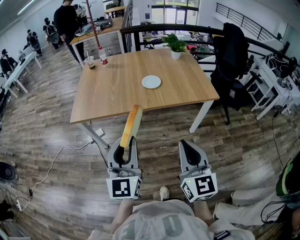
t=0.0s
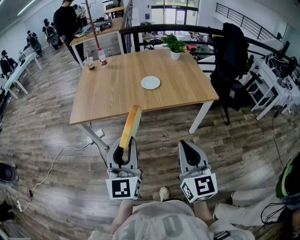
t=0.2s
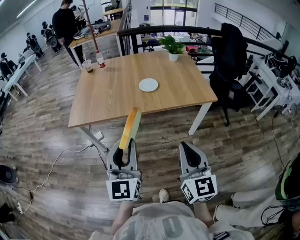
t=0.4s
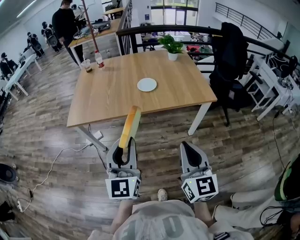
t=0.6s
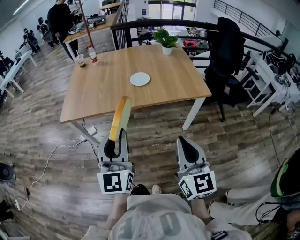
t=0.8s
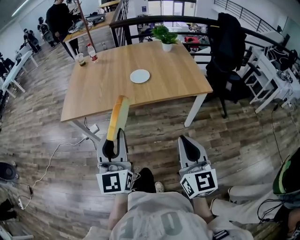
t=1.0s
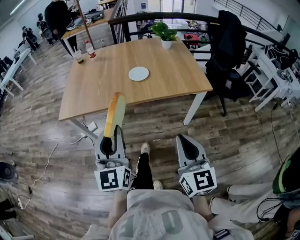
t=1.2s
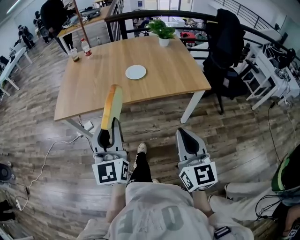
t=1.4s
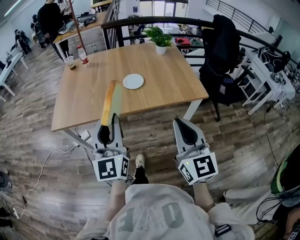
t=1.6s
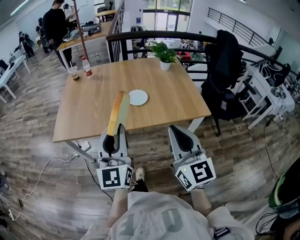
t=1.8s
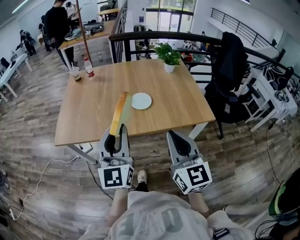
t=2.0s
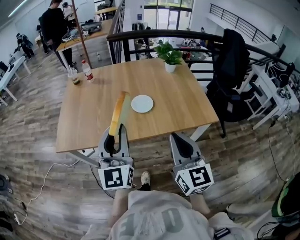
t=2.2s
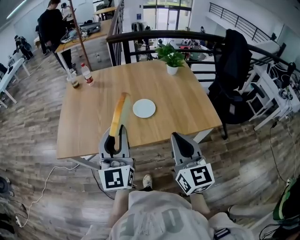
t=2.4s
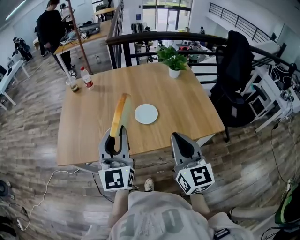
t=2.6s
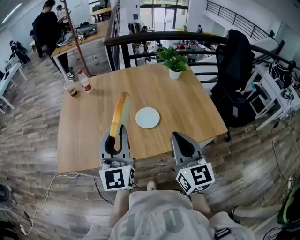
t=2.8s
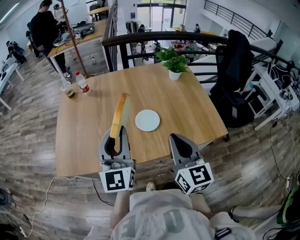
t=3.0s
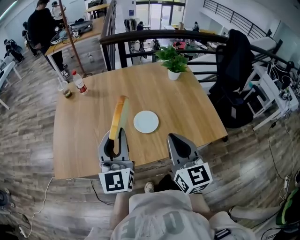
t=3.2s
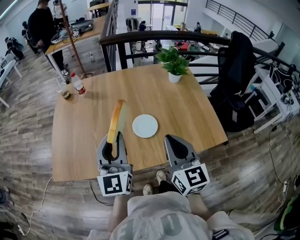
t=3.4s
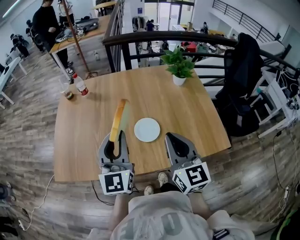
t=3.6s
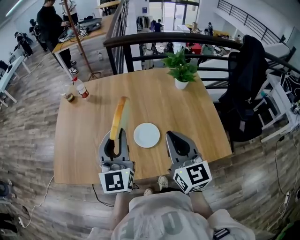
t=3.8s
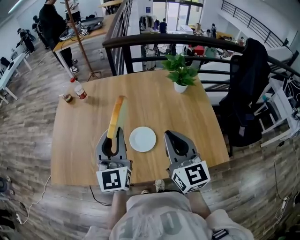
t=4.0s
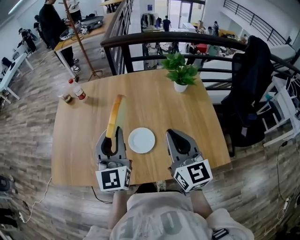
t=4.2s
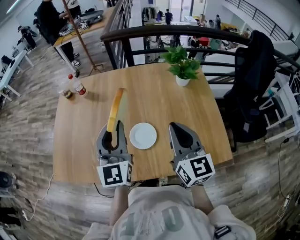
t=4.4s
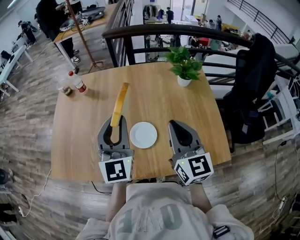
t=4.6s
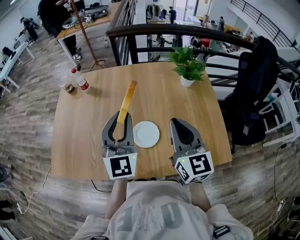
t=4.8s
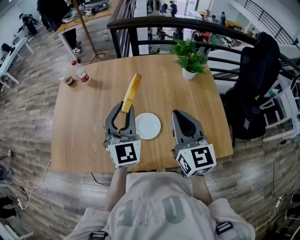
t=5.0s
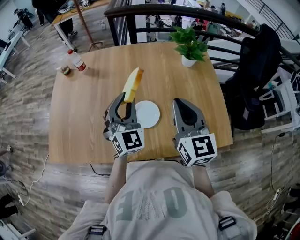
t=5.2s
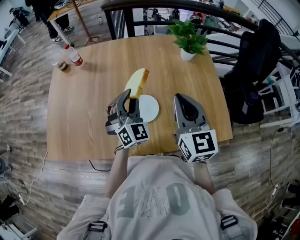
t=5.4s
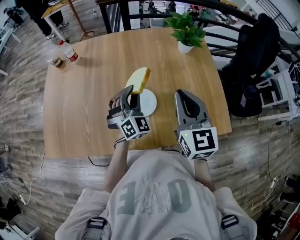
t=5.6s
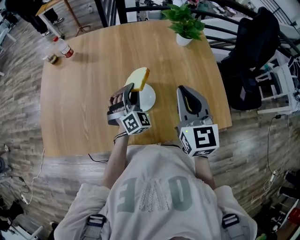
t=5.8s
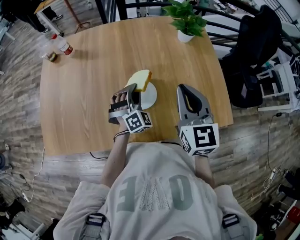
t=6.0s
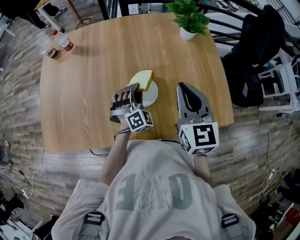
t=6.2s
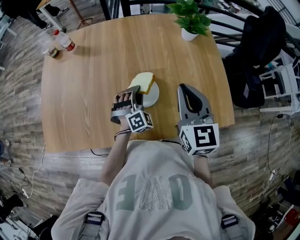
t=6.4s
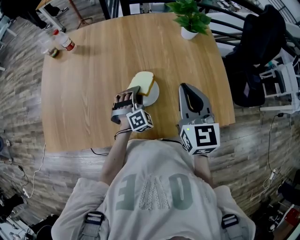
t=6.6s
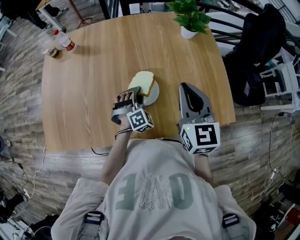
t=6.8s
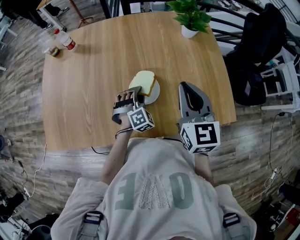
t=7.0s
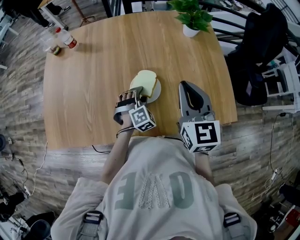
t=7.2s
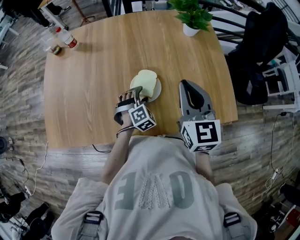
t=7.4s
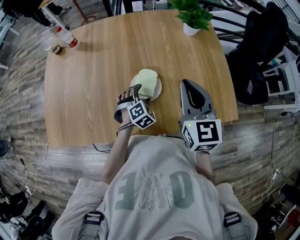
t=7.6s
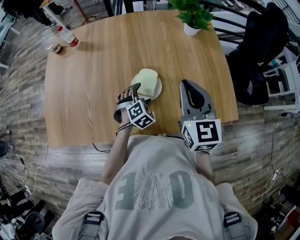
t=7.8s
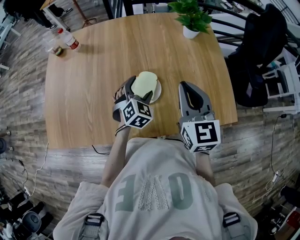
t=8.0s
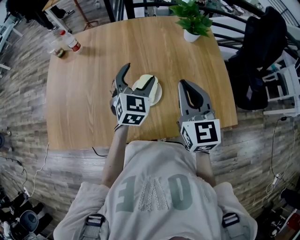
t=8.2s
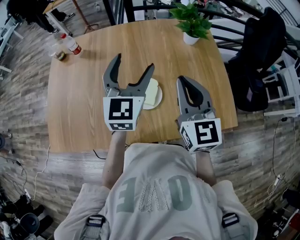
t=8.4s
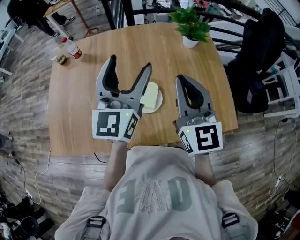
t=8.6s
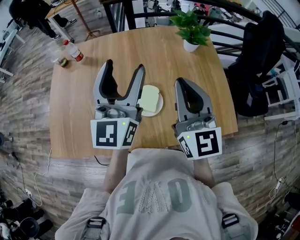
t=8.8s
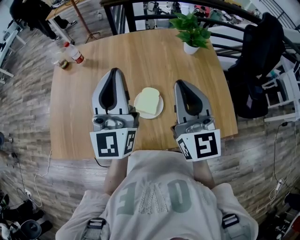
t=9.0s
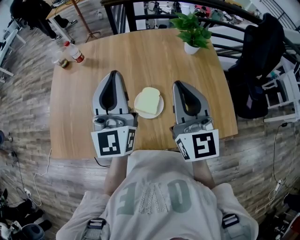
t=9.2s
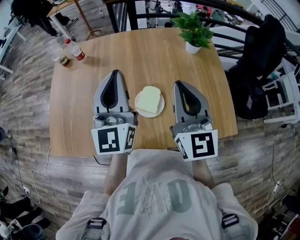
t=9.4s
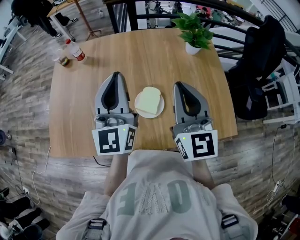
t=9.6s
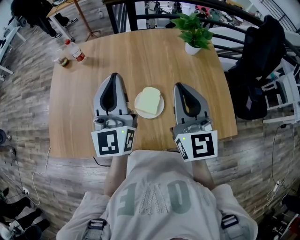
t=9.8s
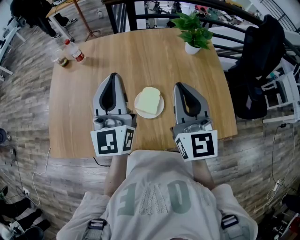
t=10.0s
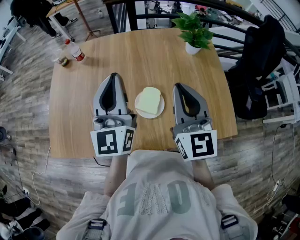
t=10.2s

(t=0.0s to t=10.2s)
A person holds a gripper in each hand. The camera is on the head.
t=0.0s - t=1.4s: The right gripper moves to the right, roughly 10 cm, while the left gripper heads forward, covering about 5 cm.
t=1.4s - t=3.0s: The two grippers go approximately 30 cm forward.
t=3.0s - t=4.4s: Both grippers move forward and to the right, some 20 cm.
t=4.4s - t=5.8s: The left gripper is displaced downward by approximately 20 cm, and twists approximately 50 degrees clockwise, seen from behind.
t=5.8s - t=7.2s: The left gripper goes roughly 10 cm downward, and changes its angle by approximately 30 degrees.
t=7.2s - t=8.8s: The left gripper moves upward, roughly 40 cm, angles its fingers upward, by about 60 degrees, and opens its fingers. Meanwhile the right gripper travels upward by roughly 10 cm.
t=8.8s - t=10.2s: The left gripper closes up.

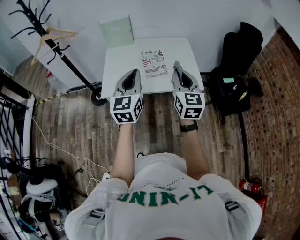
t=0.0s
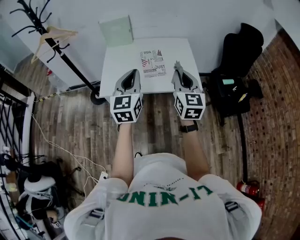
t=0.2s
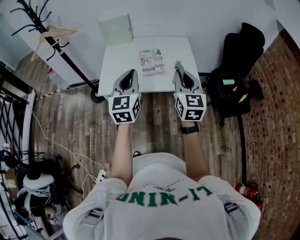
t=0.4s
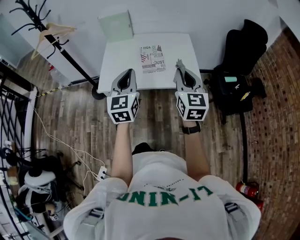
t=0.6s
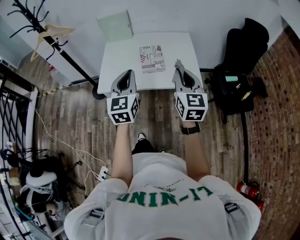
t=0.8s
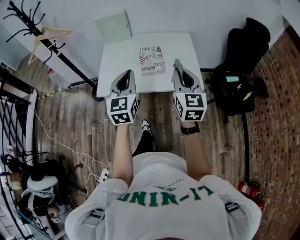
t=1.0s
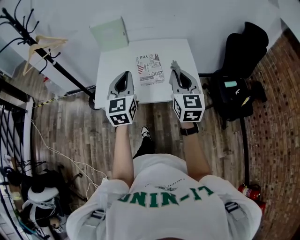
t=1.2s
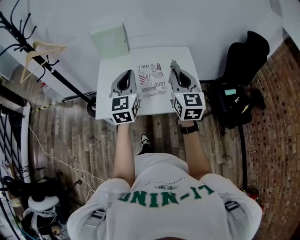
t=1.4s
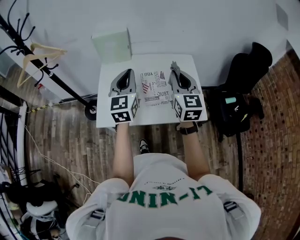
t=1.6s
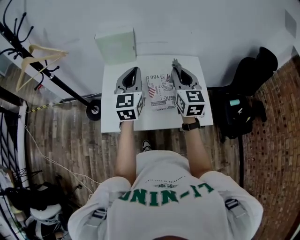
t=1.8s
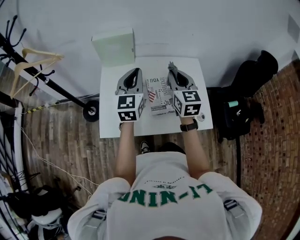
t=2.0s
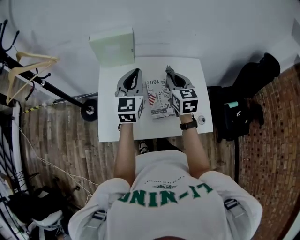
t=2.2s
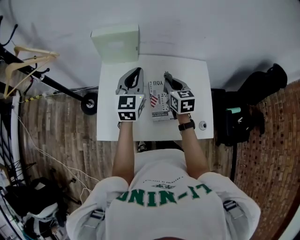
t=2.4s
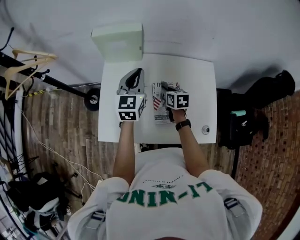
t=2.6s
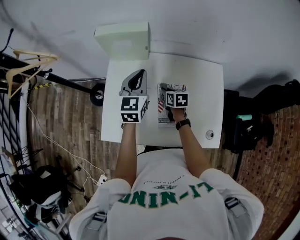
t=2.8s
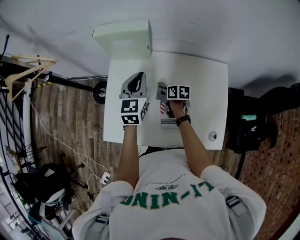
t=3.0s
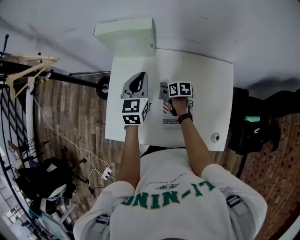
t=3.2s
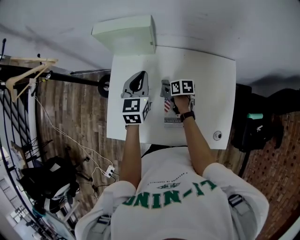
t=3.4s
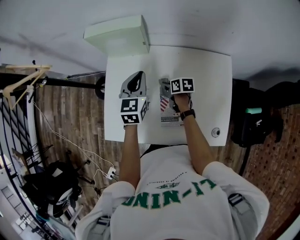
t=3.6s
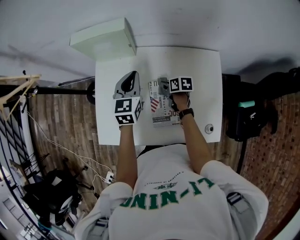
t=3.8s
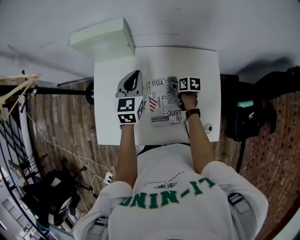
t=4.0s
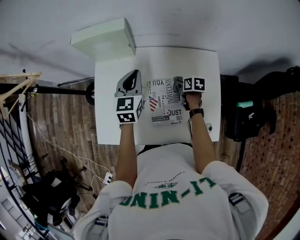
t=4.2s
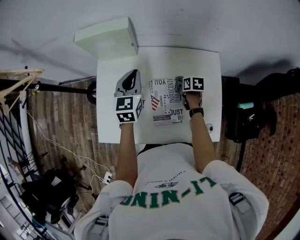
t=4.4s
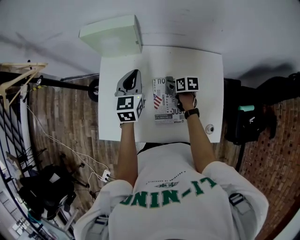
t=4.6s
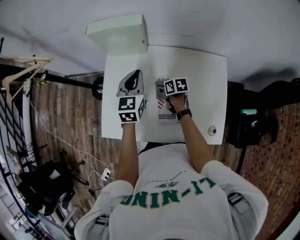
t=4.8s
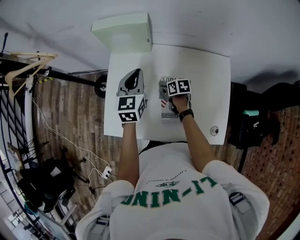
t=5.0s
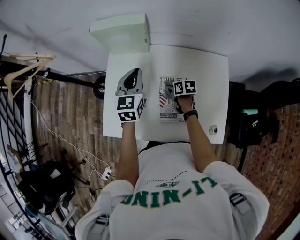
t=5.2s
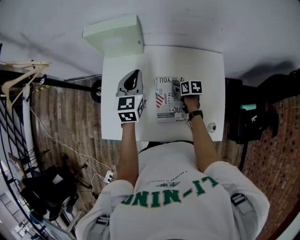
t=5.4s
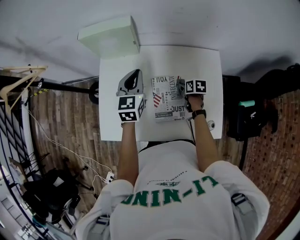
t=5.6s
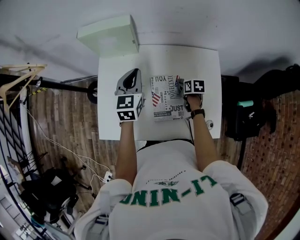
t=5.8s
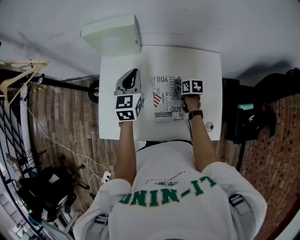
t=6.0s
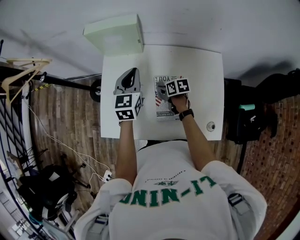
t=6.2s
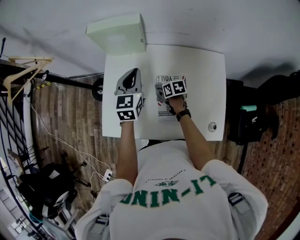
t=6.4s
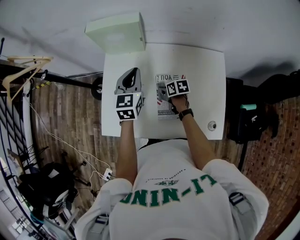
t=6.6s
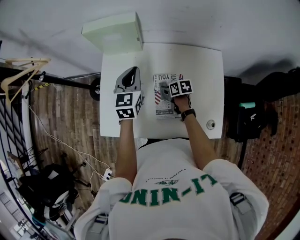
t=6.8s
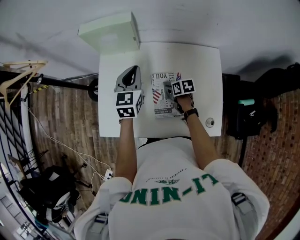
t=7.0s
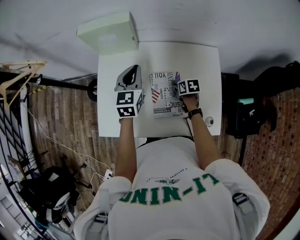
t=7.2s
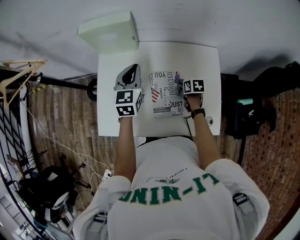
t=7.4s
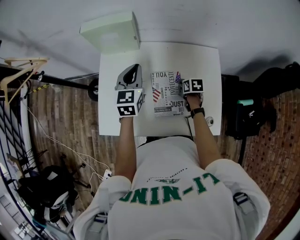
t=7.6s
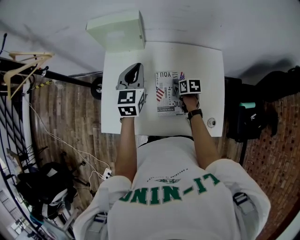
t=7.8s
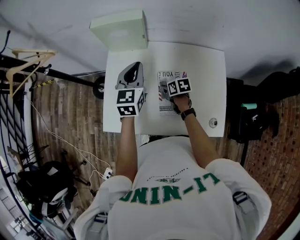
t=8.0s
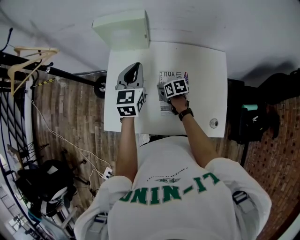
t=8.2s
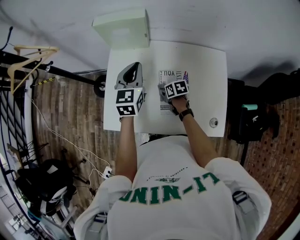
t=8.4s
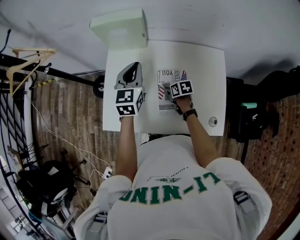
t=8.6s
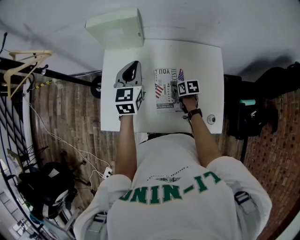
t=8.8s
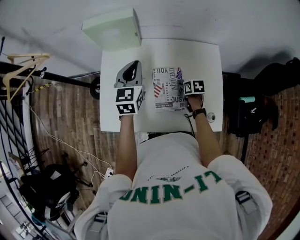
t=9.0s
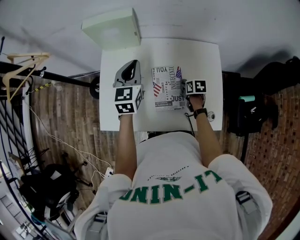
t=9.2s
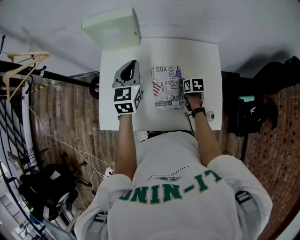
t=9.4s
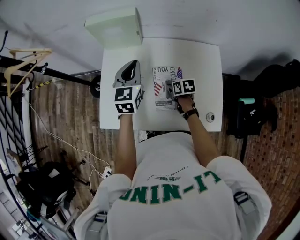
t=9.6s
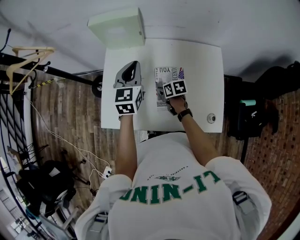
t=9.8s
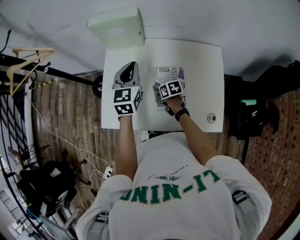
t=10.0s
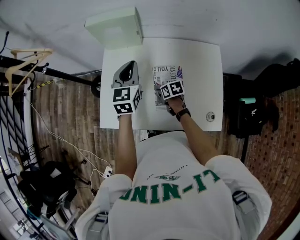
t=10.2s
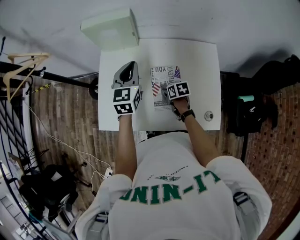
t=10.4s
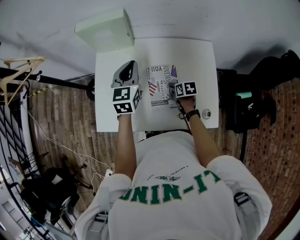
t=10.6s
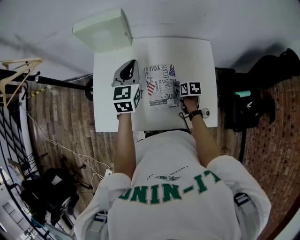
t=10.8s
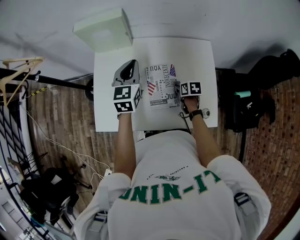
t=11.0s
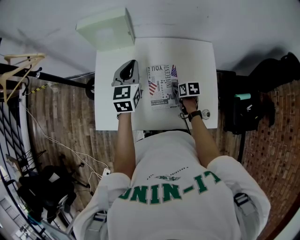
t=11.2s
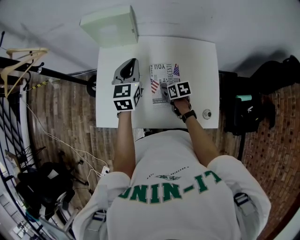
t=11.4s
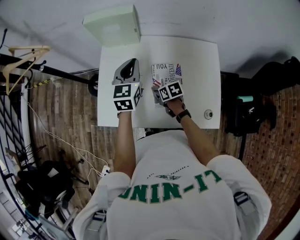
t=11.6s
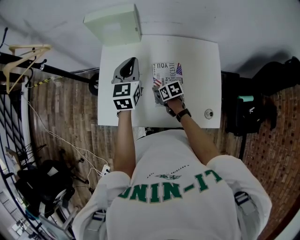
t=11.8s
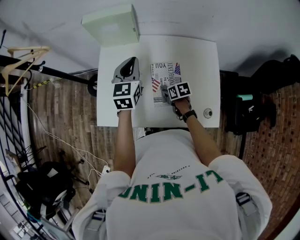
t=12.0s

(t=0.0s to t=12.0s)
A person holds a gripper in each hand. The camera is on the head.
t=0.0s - t=1.6s: Both grippers travel together forward, about 25 cm.
t=1.6s - t=3.0s: The right gripper shifts about 40 cm downward, and tips its fingers downward by approximately 40 degrees. The left gripper moves some 30 cm.
t=3.0s - t=4.4s: The right gripper goes approximately 15 cm to the right.
t=4.4s - t=6.0s: The right gripper reaches about 15 cm to the left, then returns.
t=6.0s - t=7.6s: The right gripper travels to the left and back again, some 15 cm each way.
t=7.6s - t=9.0s: The right gripper moves roughly 15 cm to the left and comes back.
t=9.0s - t=10.4s: The right gripper heads to the left, covering some 10 cm.
t=10.4s - t=12.0s: The right gripper goes left and right, roughly 15 cm each way, reversing 2 times.

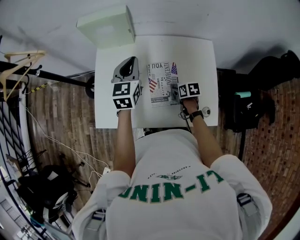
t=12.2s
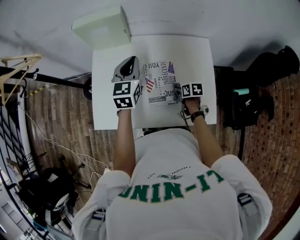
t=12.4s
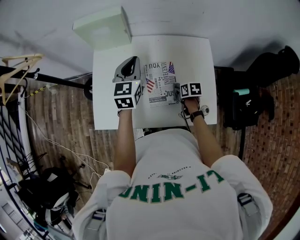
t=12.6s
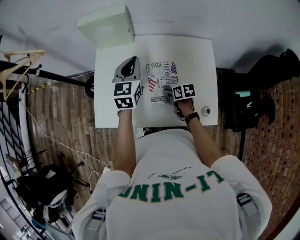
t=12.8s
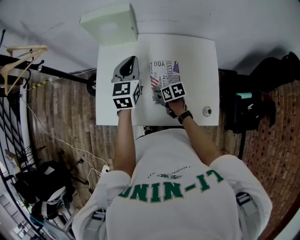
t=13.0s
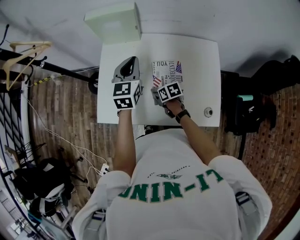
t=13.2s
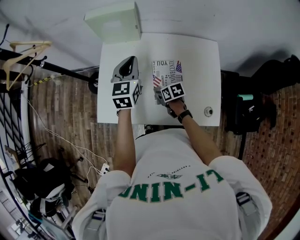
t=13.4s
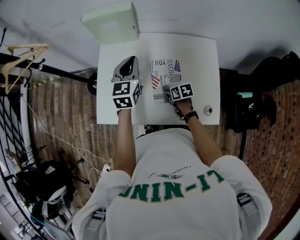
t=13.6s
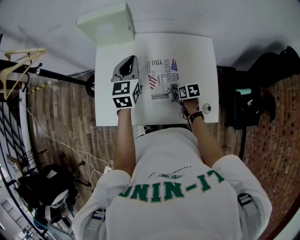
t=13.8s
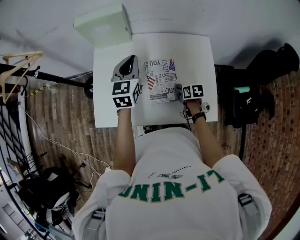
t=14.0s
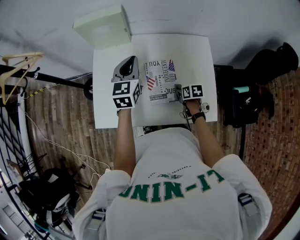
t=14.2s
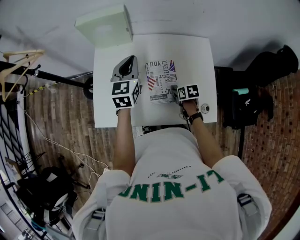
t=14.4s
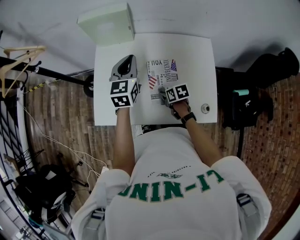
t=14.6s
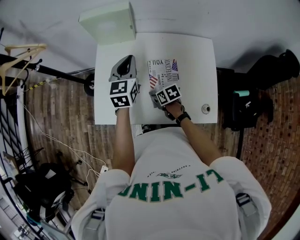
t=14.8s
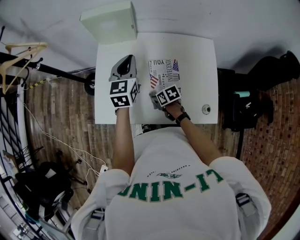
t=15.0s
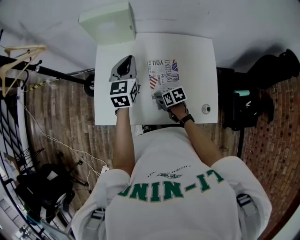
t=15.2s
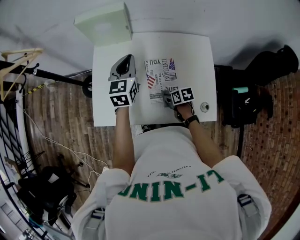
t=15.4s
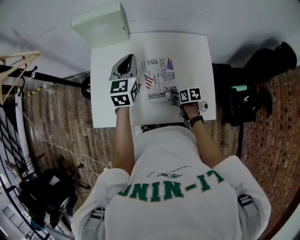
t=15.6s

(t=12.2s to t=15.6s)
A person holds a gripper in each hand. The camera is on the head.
t=12.2s - t=13.8s: The right gripper goes to the left and returns, approximately 15 cm each way.
t=13.8s - t=15.6s: The right gripper reaches approximately 15 cm to the left, then returns.
